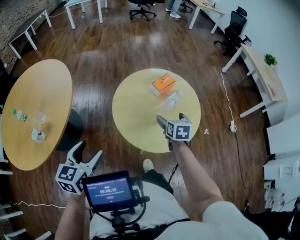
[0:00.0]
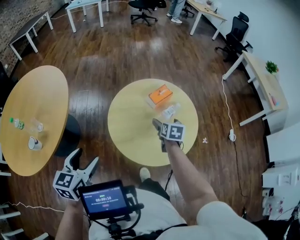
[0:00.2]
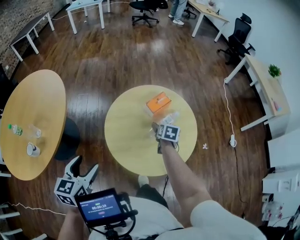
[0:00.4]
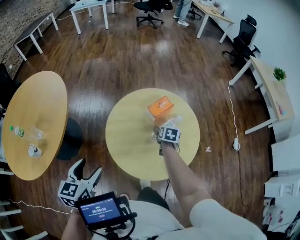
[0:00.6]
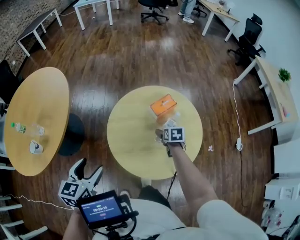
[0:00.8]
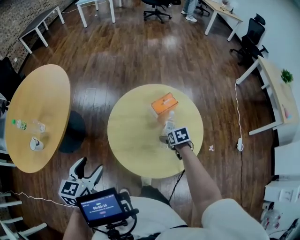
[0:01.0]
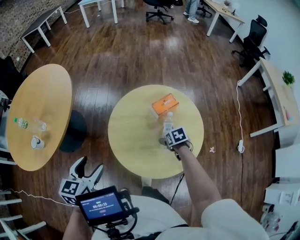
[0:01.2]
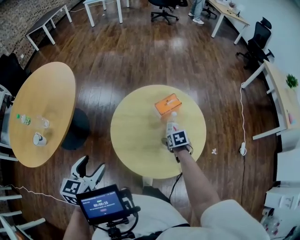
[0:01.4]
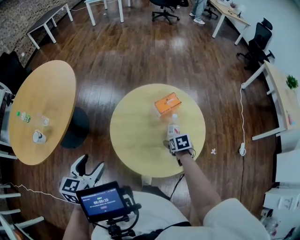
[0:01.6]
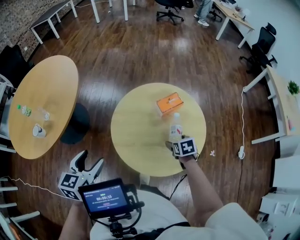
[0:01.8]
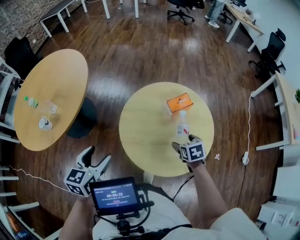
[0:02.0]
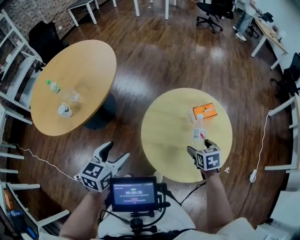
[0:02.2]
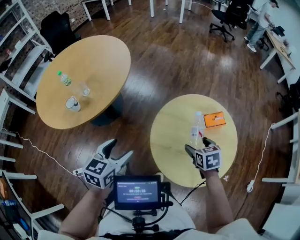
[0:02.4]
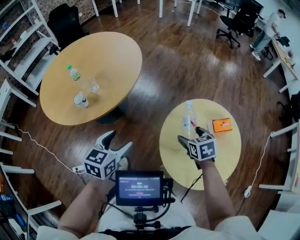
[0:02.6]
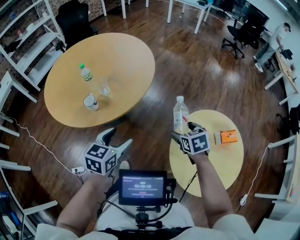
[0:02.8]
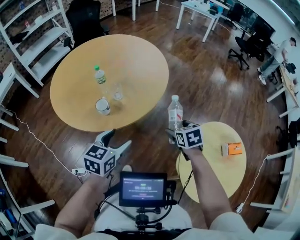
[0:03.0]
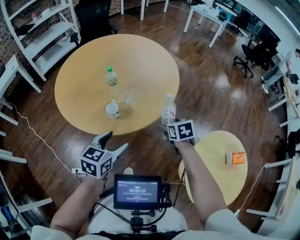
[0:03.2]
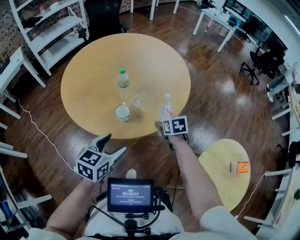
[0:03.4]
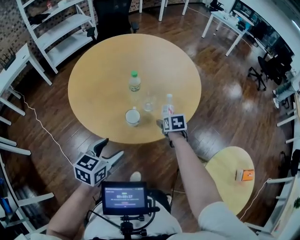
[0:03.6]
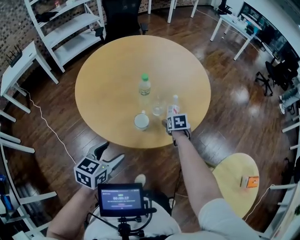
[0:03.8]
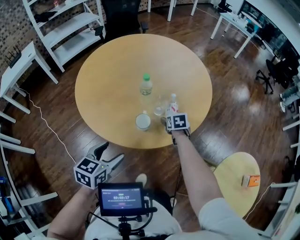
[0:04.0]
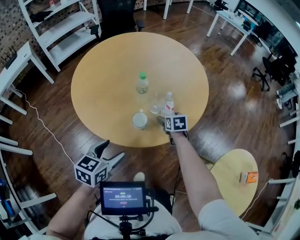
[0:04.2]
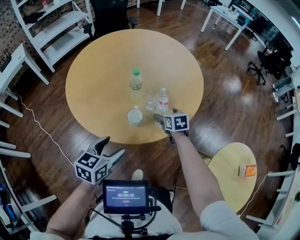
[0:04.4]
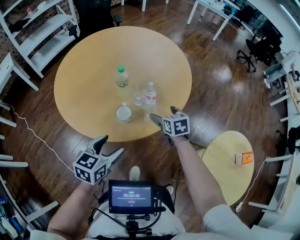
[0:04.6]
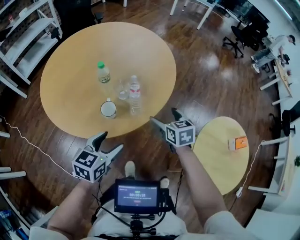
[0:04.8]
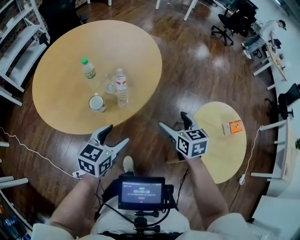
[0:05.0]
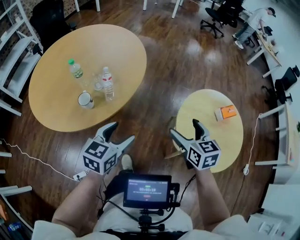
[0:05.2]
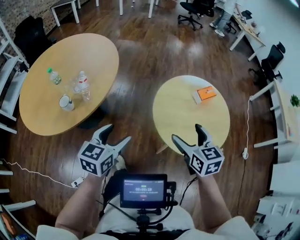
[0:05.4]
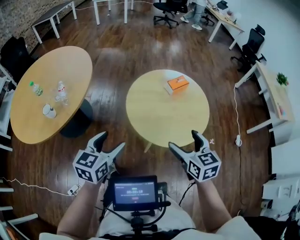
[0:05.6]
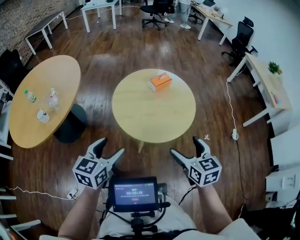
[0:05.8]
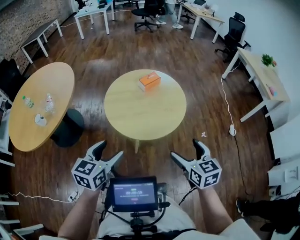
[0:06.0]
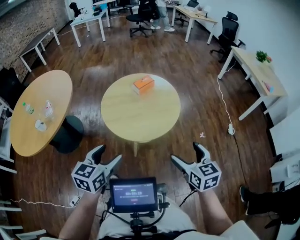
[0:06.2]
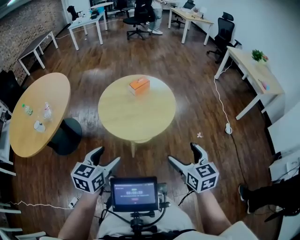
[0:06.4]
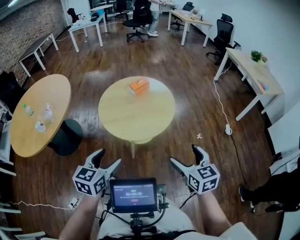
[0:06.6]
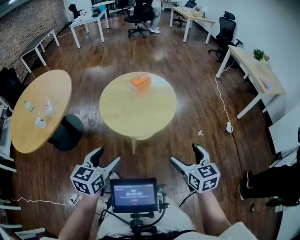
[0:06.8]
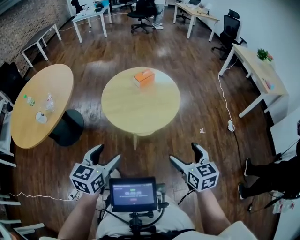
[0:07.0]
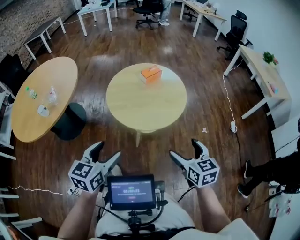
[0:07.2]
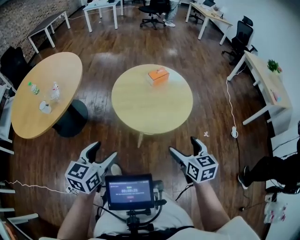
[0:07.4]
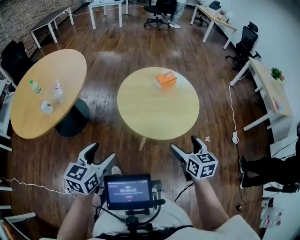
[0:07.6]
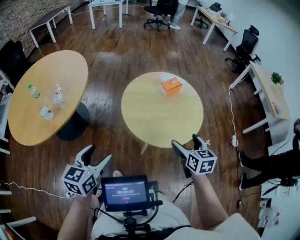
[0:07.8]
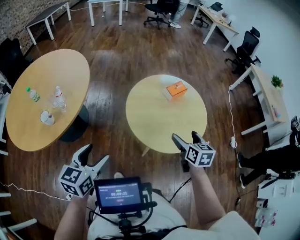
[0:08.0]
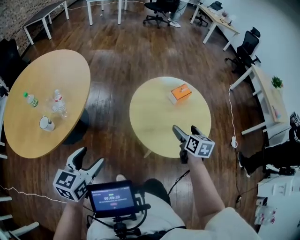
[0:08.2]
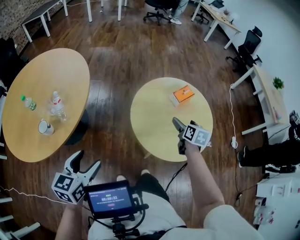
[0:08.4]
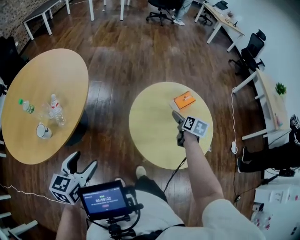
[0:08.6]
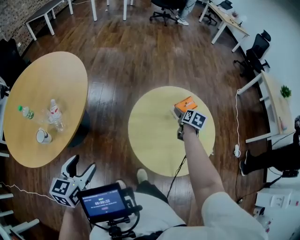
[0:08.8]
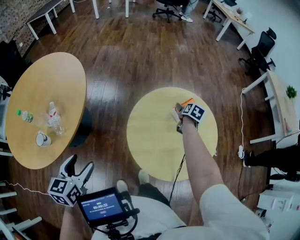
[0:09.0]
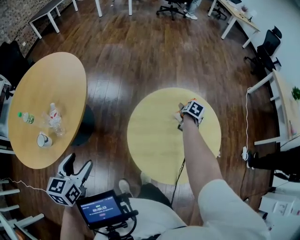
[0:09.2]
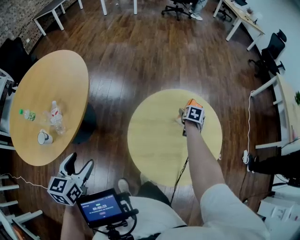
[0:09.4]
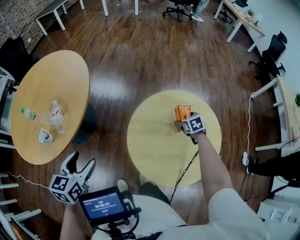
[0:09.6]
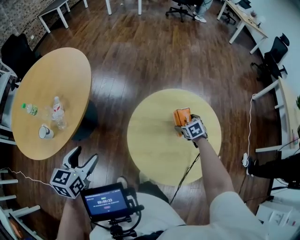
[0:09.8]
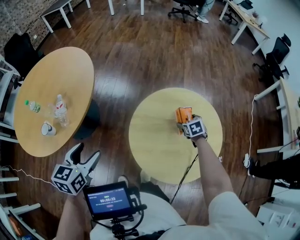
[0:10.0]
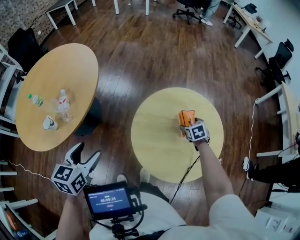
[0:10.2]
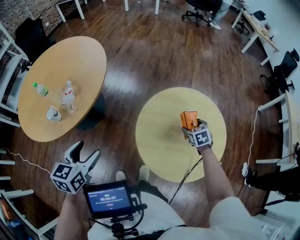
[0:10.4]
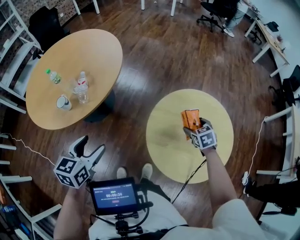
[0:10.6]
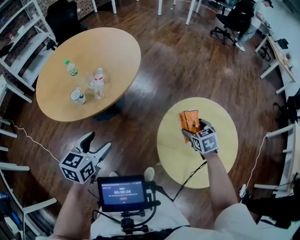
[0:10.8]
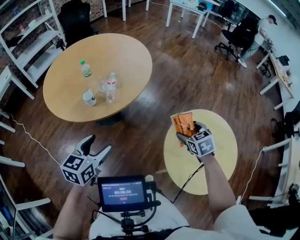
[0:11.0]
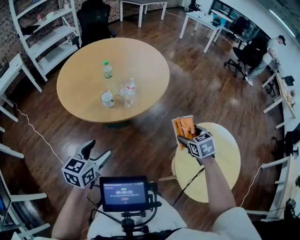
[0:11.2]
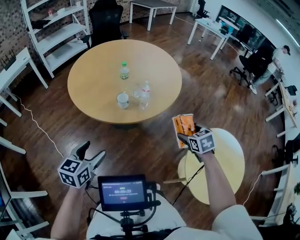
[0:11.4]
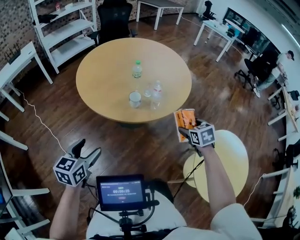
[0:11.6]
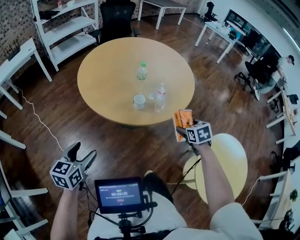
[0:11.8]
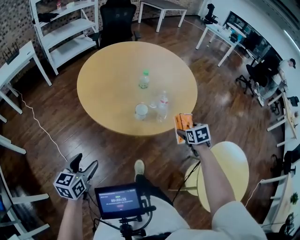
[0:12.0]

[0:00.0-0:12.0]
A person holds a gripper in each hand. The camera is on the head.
0:00.0 to 0:01.6: The left gripper shifts by some 5 cm. The right gripper travels downward by some 15 cm, and rotates about 30 degrees.
0:01.6 to 0:03.0: The right gripper shifts roughly 50 cm to the left and forward, and turns by approximately 40 degrees, while the left gripper goes about 25 cm to the left.
0:03.0 to 0:04.4: The left gripper travels to the left by approximately 20 cm; the right gripper goes about 30 cm to the left, forward and downward.
0:04.4 to 0:06.0: The pair of grippers is taken about 70 cm. The right gripper rotates about 50 degrees; the left gripper rotates about 40 degrees.
0:06.0 to 0:07.6: The left gripper goes some 10 cm to the left; the right gripper shifts some 5 cm to the left.
0:07.6 to 0:09.0: The left gripper heads forward and to the left, covering approximately 25 cm; the right gripper is displaced forward by about 50 cm, and changes its angle by some 40 degrees.
0:09.0 to 0:10.4: The right gripper travels backward and to the left by some 10 cm, and rotates around the line of its fingers by roughly 60 degrees, counterclockwise from behind.
0:10.4 to 0:12.0: The pair of grippers is taken about 50 cm. The left gripper turns by some 30 degrees, while the right gripper turns by about 30 degrees.

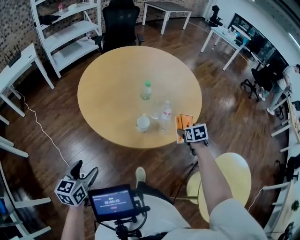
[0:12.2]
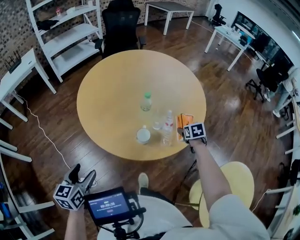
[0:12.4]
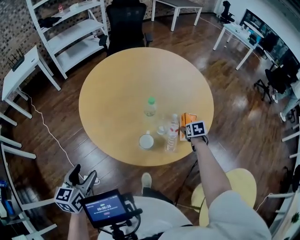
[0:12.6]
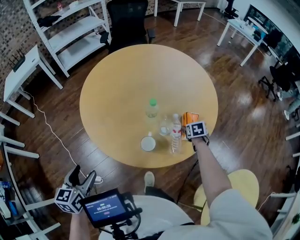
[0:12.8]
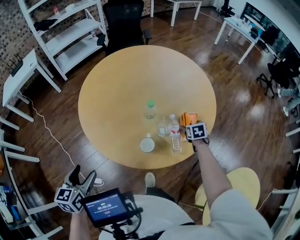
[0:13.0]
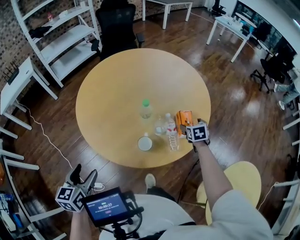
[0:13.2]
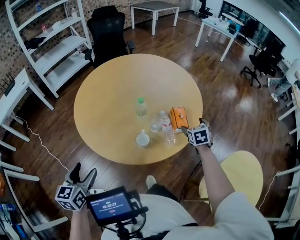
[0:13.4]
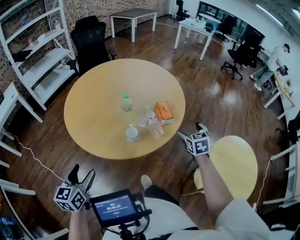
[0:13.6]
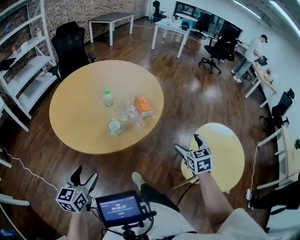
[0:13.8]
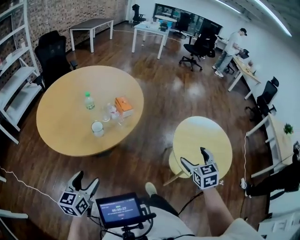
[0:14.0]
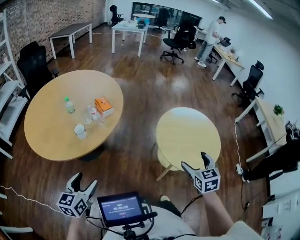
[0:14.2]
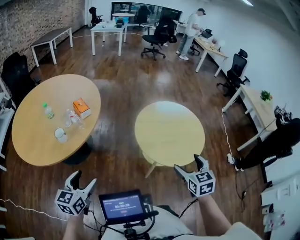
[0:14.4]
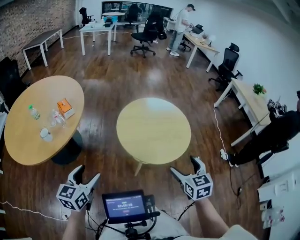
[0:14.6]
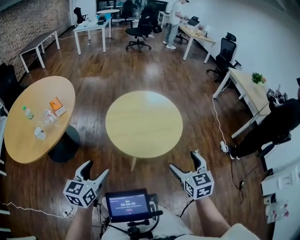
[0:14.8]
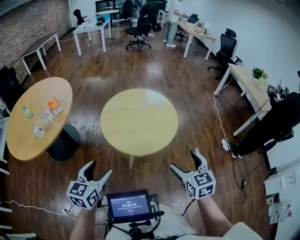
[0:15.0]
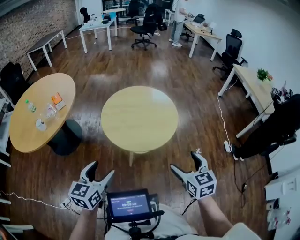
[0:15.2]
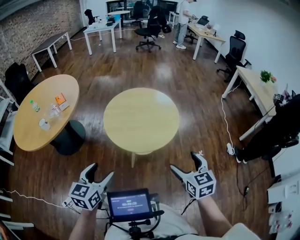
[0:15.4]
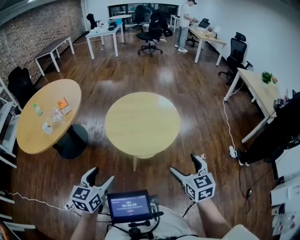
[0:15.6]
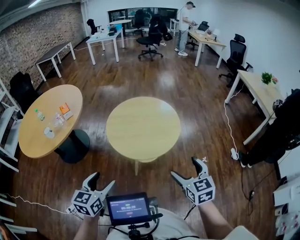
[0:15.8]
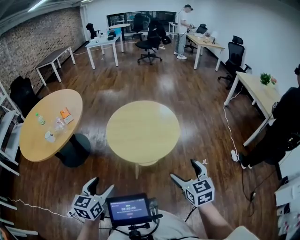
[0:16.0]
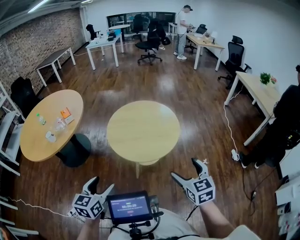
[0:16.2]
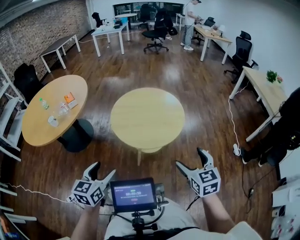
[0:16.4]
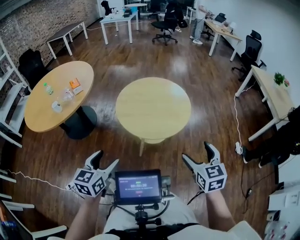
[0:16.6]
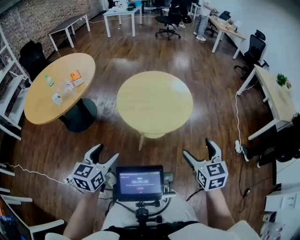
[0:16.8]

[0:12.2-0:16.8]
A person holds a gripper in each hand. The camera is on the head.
0:12.2 to 0:13.8: The right gripper goes about 25 cm backward and upward, and swivels approximately 30 degrees. Meanwhile the left gripper travels to the right by about 5 cm, travels forward and back again, about 10 cm each way, and turns by about 20 degrees.
0:13.8 to 0:15.2: The pair of grippers is taken about 60 cm. The left gripper swivels some 30 degrees; the right gripper turns by approximately 30 degrees.
0:15.2 to 0:16.8: The grippers make only small movements.

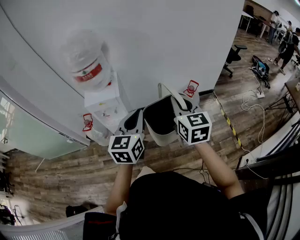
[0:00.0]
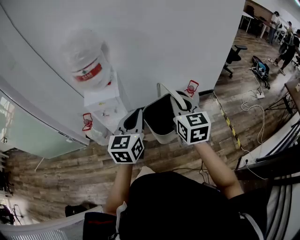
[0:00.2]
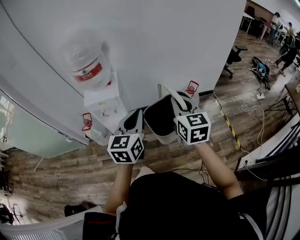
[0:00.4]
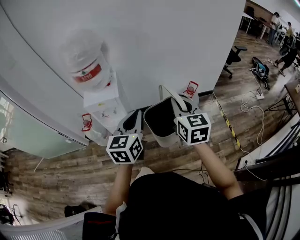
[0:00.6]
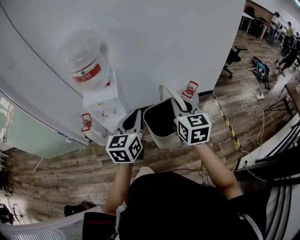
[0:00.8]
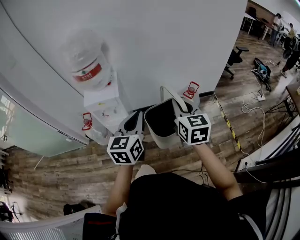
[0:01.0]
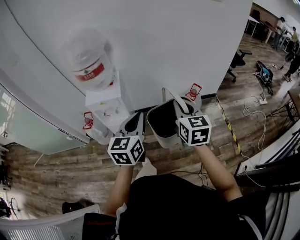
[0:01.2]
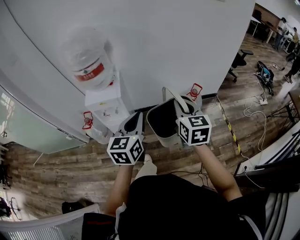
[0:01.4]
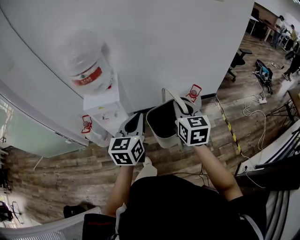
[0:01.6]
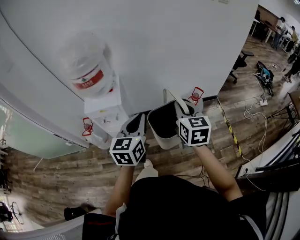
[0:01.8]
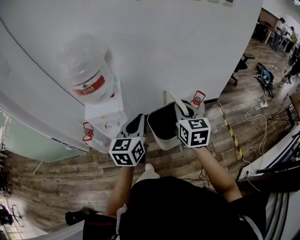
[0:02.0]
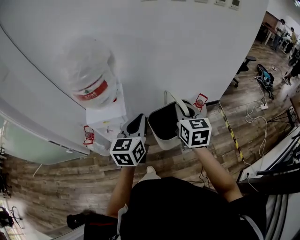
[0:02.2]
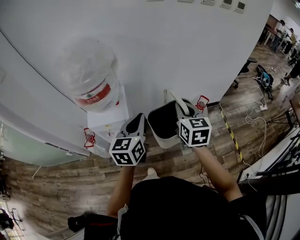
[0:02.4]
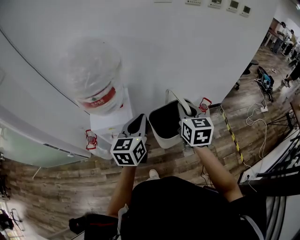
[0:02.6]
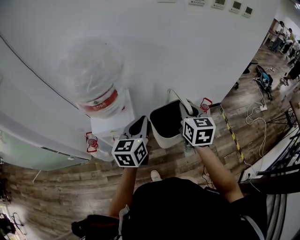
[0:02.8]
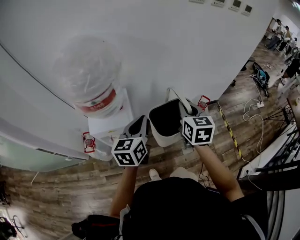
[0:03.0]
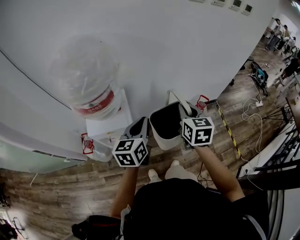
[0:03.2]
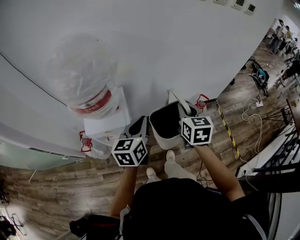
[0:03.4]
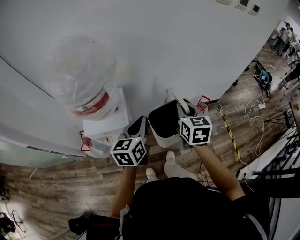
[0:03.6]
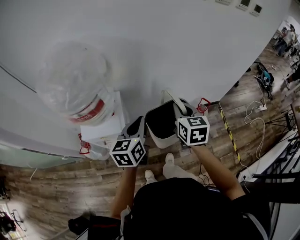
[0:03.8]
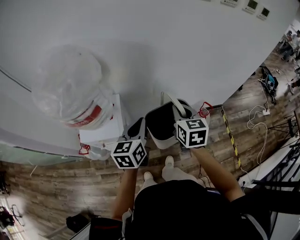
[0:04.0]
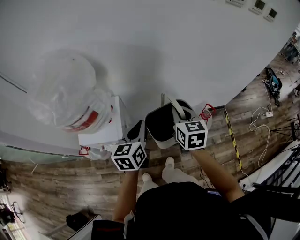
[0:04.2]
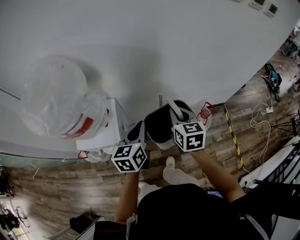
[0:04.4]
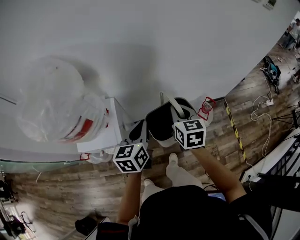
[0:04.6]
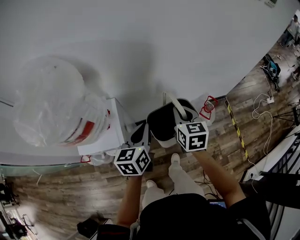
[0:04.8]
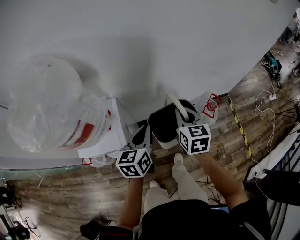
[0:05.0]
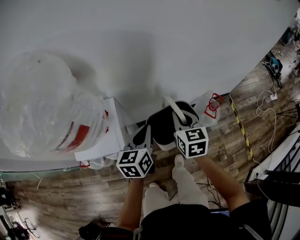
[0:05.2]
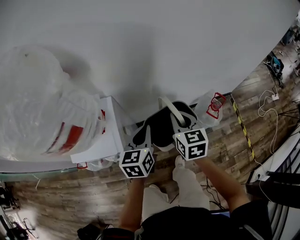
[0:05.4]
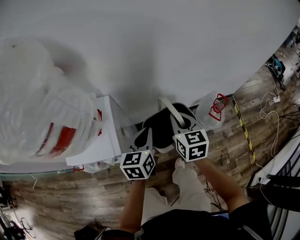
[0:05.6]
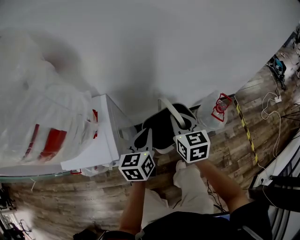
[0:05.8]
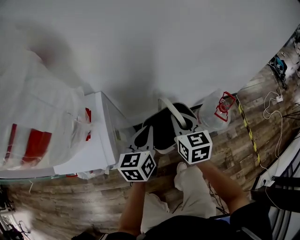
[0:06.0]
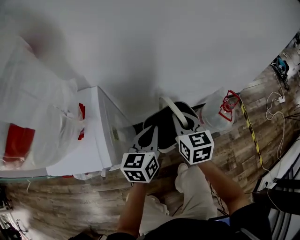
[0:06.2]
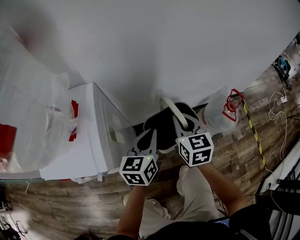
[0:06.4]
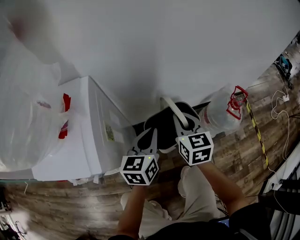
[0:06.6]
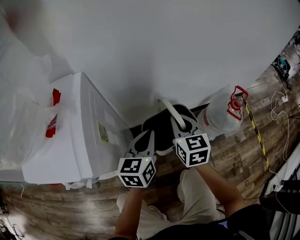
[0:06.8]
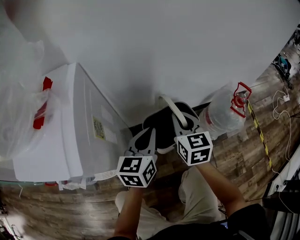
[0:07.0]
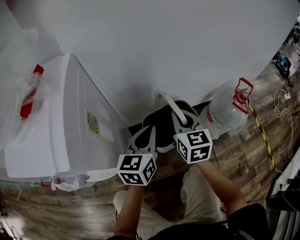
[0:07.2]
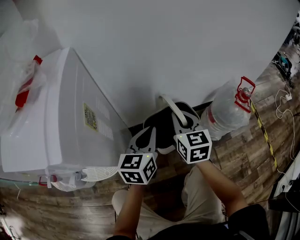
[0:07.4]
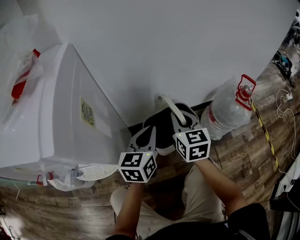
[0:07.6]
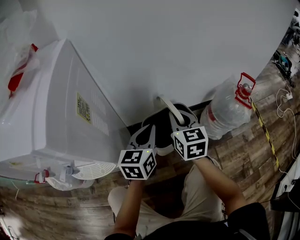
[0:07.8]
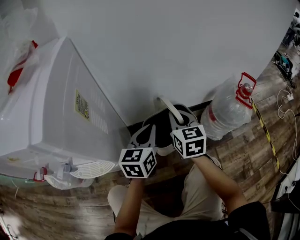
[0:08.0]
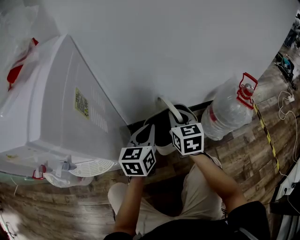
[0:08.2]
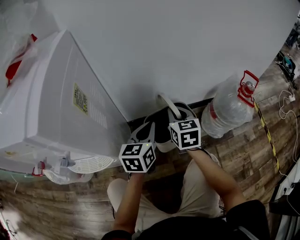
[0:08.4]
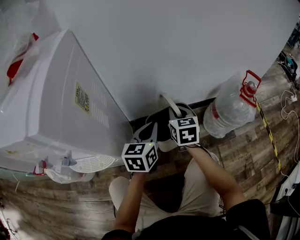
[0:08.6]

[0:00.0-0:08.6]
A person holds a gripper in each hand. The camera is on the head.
0:00.0 to 0:01.4: There are only small adjustments of the grippers.
0:01.4 to 0:02.8: The two grippers go approximately 20 cm forward and to the left.
0:02.8 to 0:04.4: The right gripper goes about 15 cm forward and downward; the left gripper heads forward, downward and to the right, covering some 15 cm.
0:04.4 to 0:05.8: Both grippers travel together downward, approximately 20 cm.
0:05.8 to 0:07.2: The two grippers go about 20 cm downward.
0:07.2 to 0:08.6: The two grippers go about 10 cm downward.
